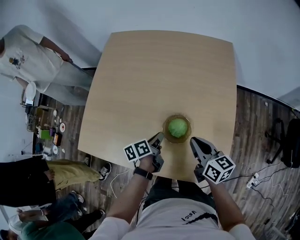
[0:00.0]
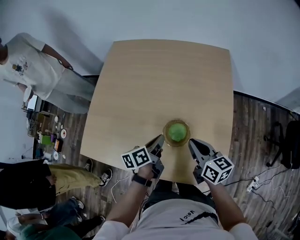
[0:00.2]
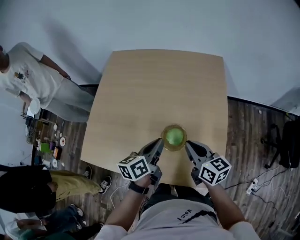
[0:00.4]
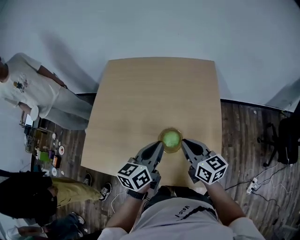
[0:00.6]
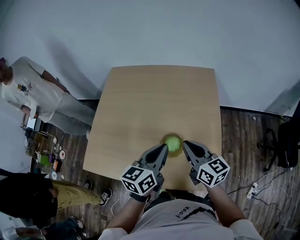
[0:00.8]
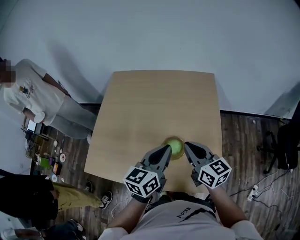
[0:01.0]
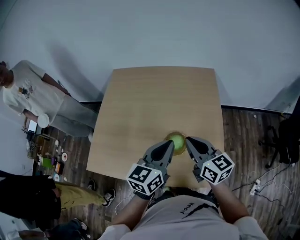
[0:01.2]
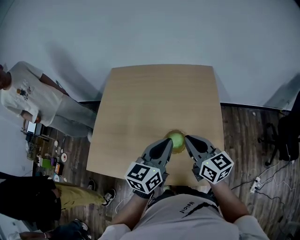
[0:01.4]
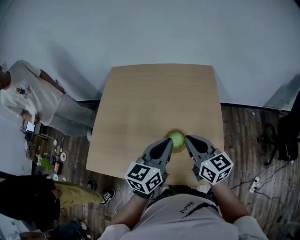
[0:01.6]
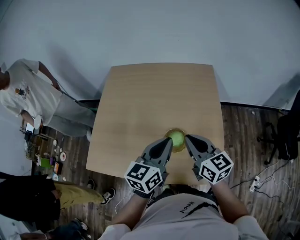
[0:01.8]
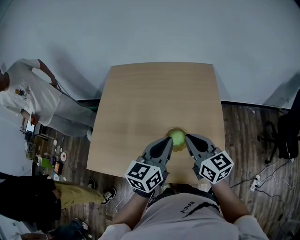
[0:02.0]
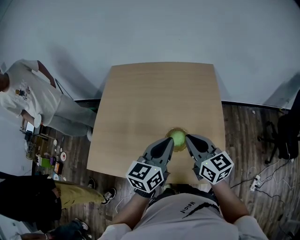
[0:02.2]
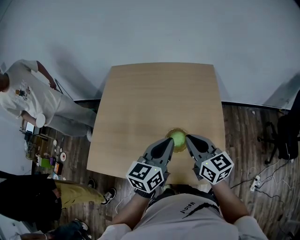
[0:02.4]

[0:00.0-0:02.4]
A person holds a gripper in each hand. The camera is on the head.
0:00.0 to 0:01.2: The right gripper travels upward by about 15 cm.

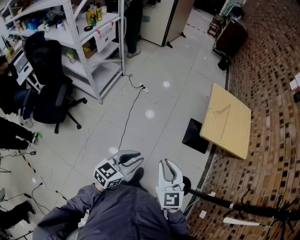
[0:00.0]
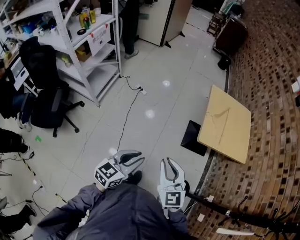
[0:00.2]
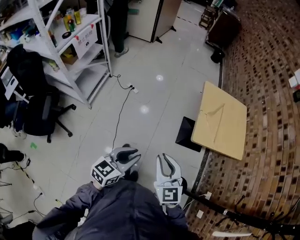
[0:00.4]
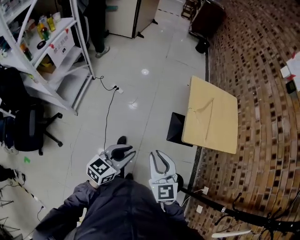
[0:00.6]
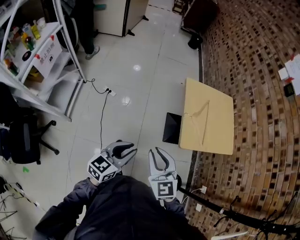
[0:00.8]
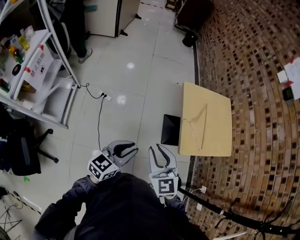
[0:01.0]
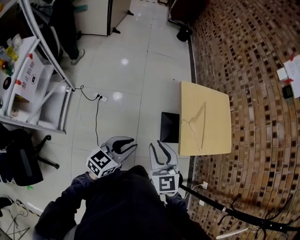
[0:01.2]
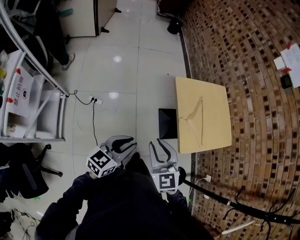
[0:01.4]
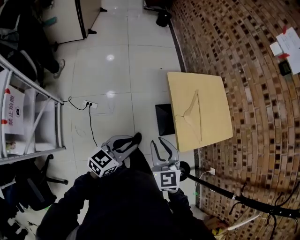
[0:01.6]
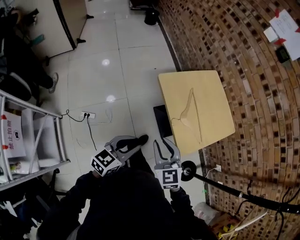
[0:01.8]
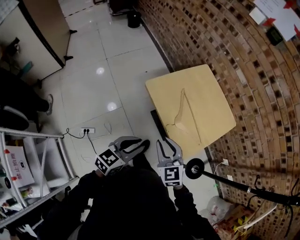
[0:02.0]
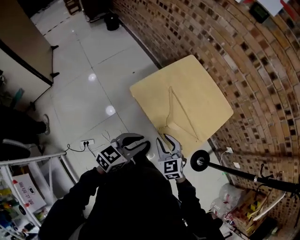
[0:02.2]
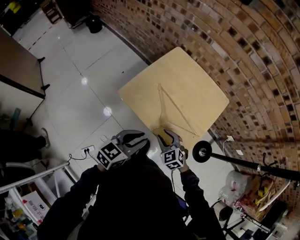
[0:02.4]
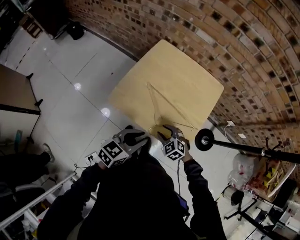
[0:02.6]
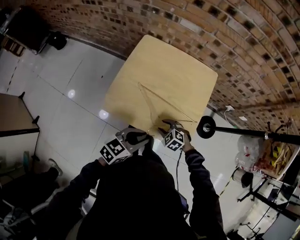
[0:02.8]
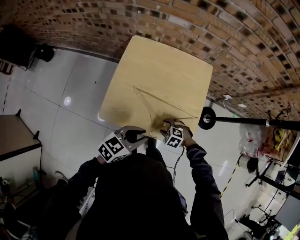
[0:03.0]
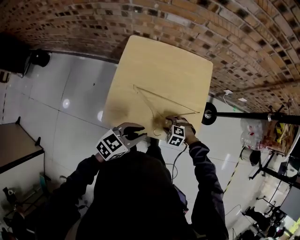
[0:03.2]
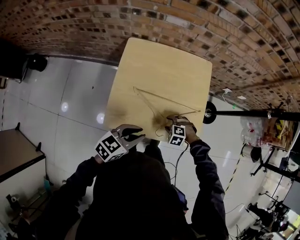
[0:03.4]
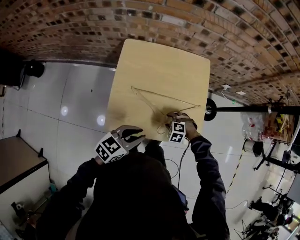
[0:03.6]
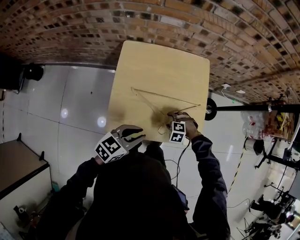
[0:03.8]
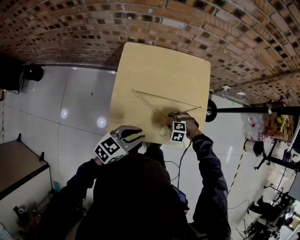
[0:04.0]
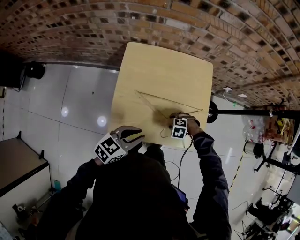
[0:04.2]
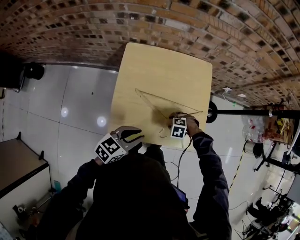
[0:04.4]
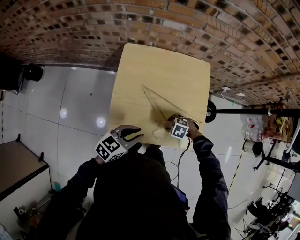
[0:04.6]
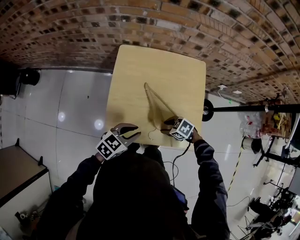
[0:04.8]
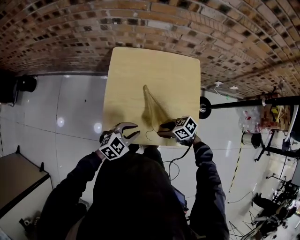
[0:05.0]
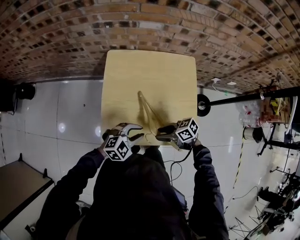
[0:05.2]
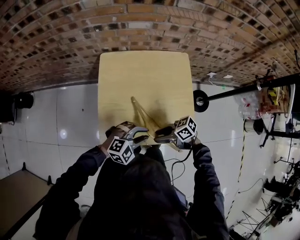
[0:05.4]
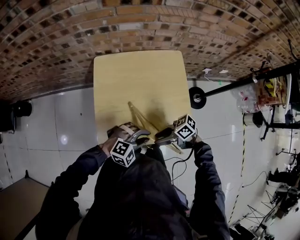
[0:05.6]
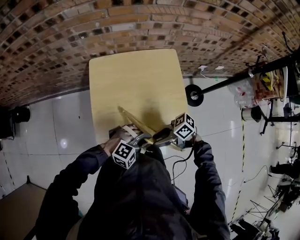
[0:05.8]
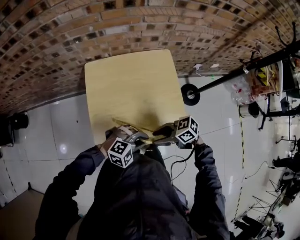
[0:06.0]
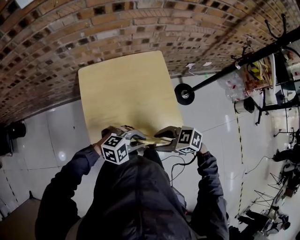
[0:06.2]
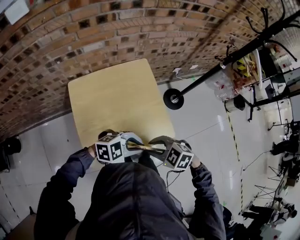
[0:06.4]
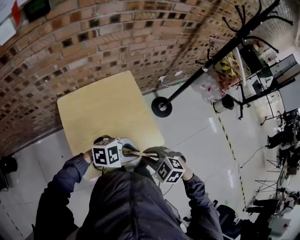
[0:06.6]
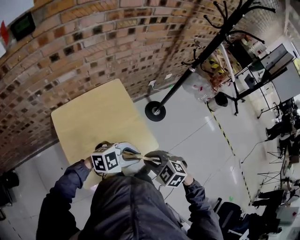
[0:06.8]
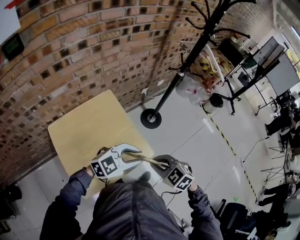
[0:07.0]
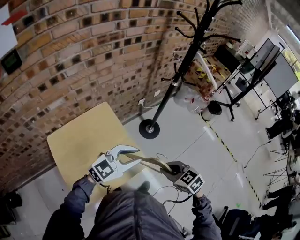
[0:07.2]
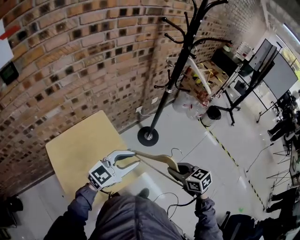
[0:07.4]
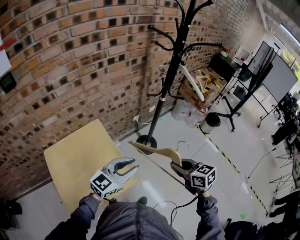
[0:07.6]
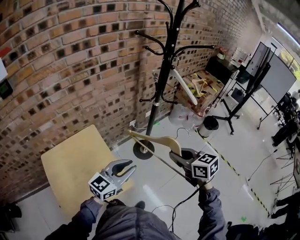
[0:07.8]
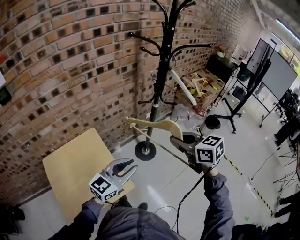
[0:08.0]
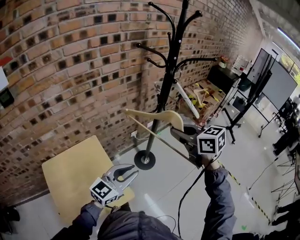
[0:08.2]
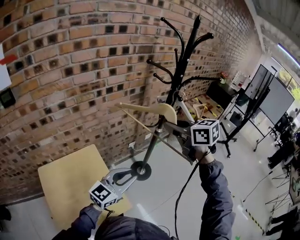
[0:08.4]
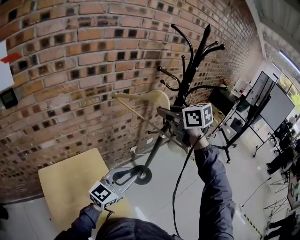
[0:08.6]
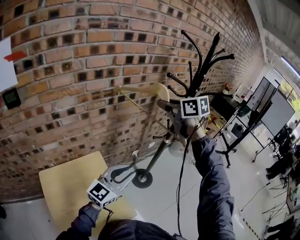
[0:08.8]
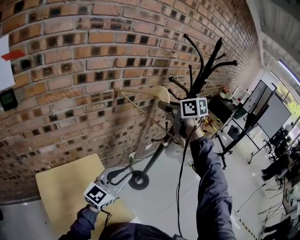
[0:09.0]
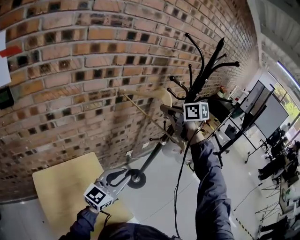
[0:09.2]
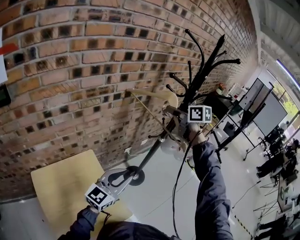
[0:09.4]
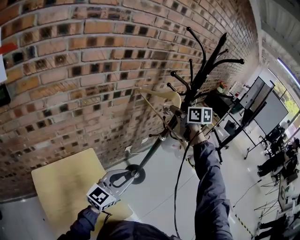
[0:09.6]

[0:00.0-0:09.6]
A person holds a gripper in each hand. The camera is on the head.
0:00.0 to 0:01.6: The pair of grippers is taken some 50 cm. The left gripper swivels roughly 30 degrees. The right gripper swivels approximately 30 degrees.
0:01.6 to 0:03.2: The right gripper shifts by about 50 cm, tips its fingers downward by some 50 degrees, and opens, while the left gripper moves about 40 cm, and rotates some 80 degrees.
0:03.2 to 0:04.8: The right gripper changes place by roughly 5 cm, and changes its angle by some 40 degrees, while the left gripper moves roughly 10 cm.
0:04.8 to 0:06.4: The left gripper changes place by about 15 cm, and turns by approximately 70 degrees; the right gripper travels upward by about 20 cm, and changes its angle by roughly 30 degrees.
0:06.4 to 0:08.0: The left gripper moves approximately 35 cm, and angles its fingers upward, by some 30 degrees. Meanwhile the right gripper changes place by about 50 cm, and turns by about 60 degrees.
0:08.0 to 0:09.6: The right gripper is displaced forward by some 30 cm. Meanwhile the left gripper travels forward and to the left by roughly 15 cm.

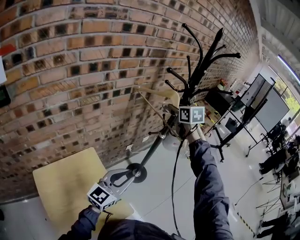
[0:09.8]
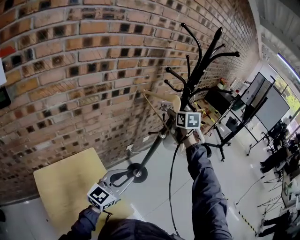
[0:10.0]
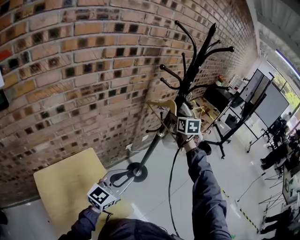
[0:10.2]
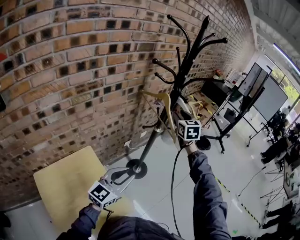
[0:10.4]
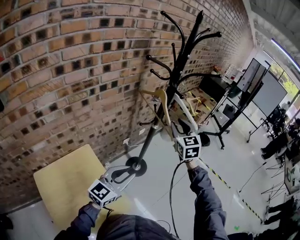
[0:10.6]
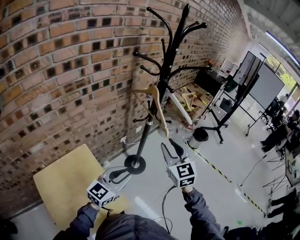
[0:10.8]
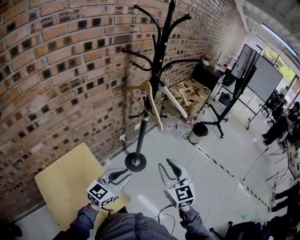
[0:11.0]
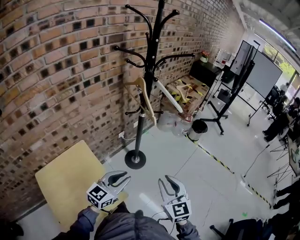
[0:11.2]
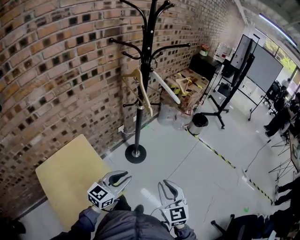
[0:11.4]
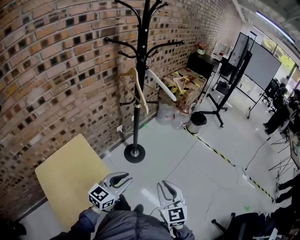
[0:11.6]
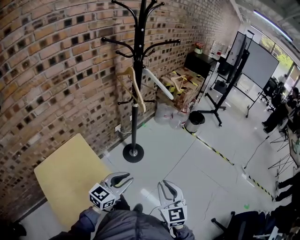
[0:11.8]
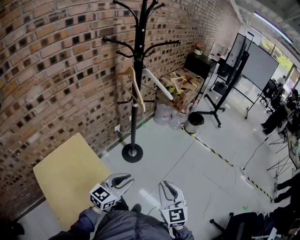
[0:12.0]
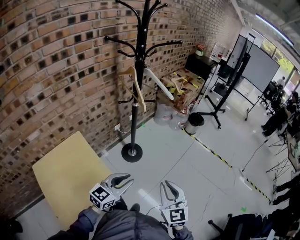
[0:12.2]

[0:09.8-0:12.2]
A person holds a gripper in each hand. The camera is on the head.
0:09.8 to 0:11.0: The left gripper travels to the right by approximately 10 cm, while the right gripper moves backward and to the right, some 35 cm, and turns by approximately 20 degrees.
0:11.0 to 0:12.2: The left gripper goes approximately 15 cm to the right and backward. The right gripper moves backward, to the right and downward, about 20 cm.

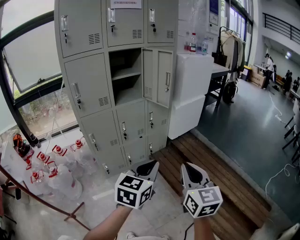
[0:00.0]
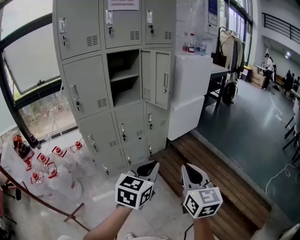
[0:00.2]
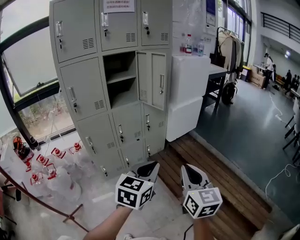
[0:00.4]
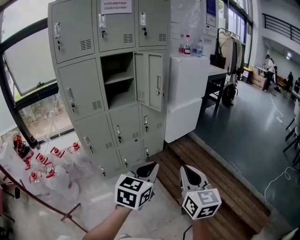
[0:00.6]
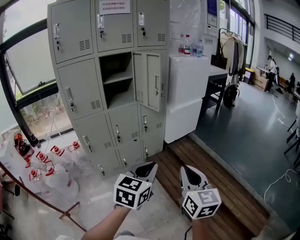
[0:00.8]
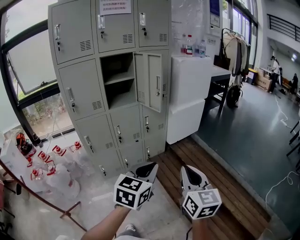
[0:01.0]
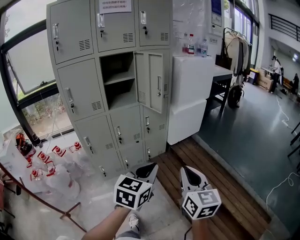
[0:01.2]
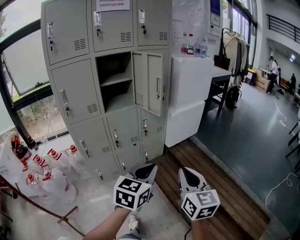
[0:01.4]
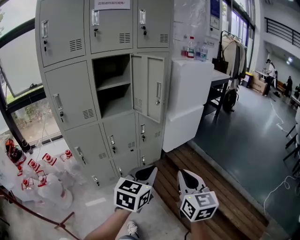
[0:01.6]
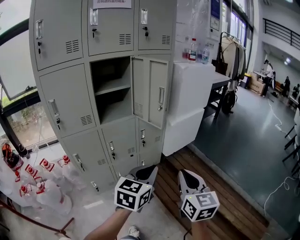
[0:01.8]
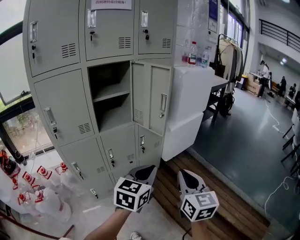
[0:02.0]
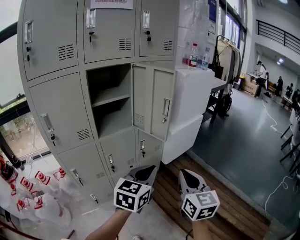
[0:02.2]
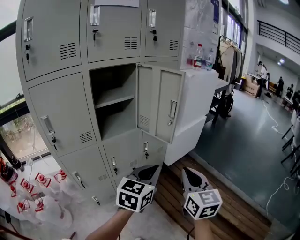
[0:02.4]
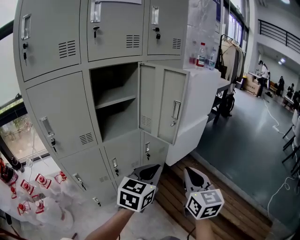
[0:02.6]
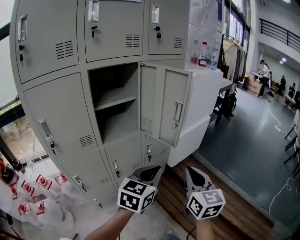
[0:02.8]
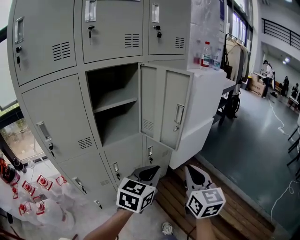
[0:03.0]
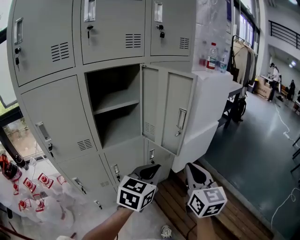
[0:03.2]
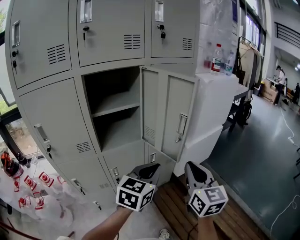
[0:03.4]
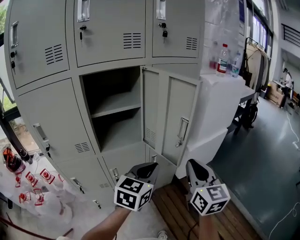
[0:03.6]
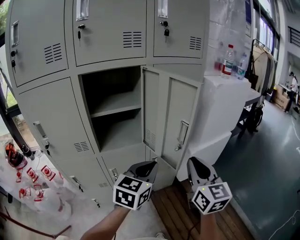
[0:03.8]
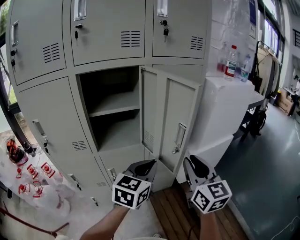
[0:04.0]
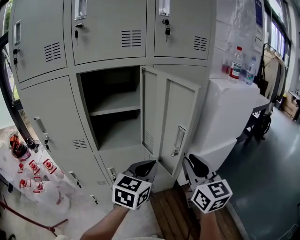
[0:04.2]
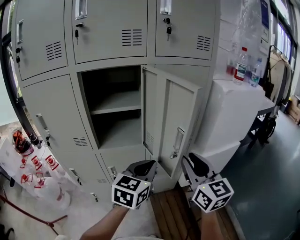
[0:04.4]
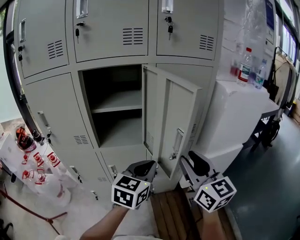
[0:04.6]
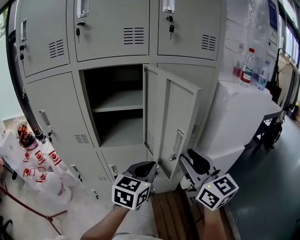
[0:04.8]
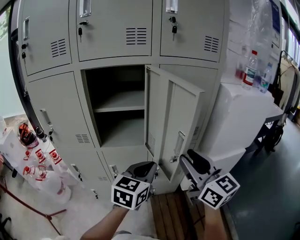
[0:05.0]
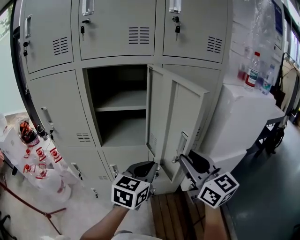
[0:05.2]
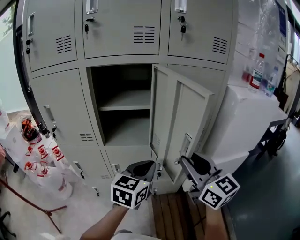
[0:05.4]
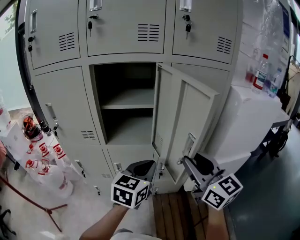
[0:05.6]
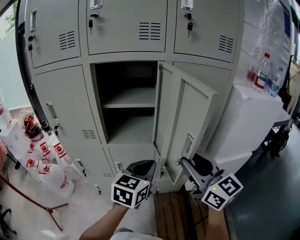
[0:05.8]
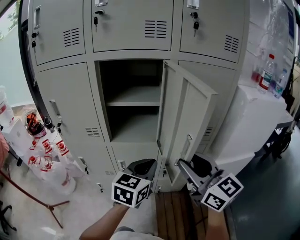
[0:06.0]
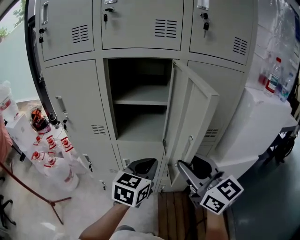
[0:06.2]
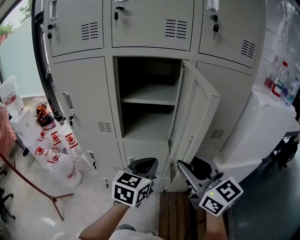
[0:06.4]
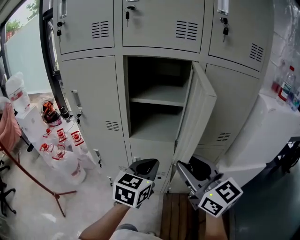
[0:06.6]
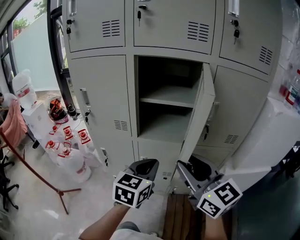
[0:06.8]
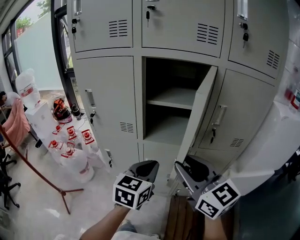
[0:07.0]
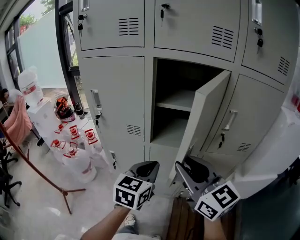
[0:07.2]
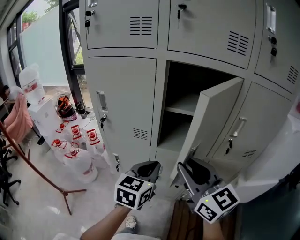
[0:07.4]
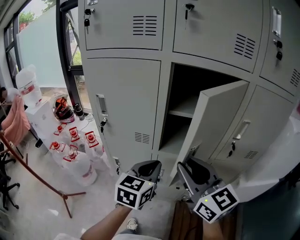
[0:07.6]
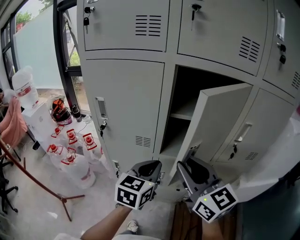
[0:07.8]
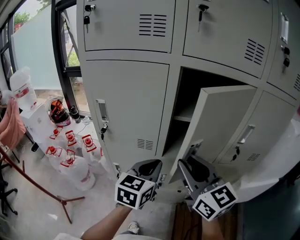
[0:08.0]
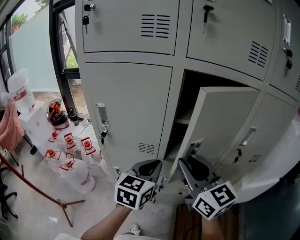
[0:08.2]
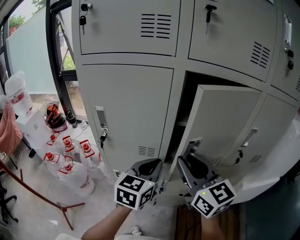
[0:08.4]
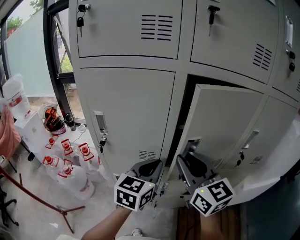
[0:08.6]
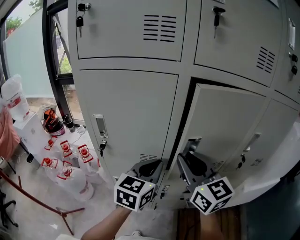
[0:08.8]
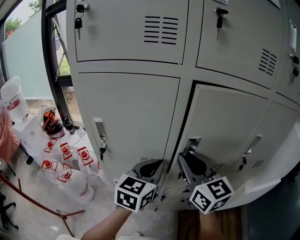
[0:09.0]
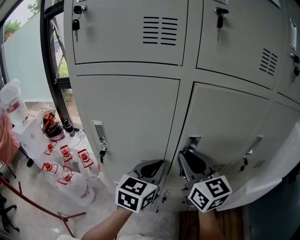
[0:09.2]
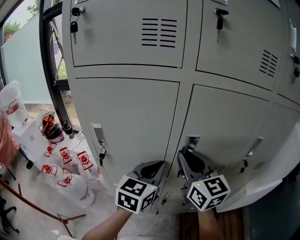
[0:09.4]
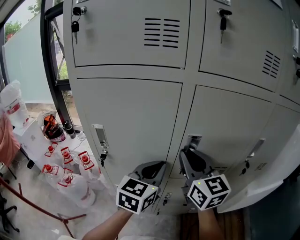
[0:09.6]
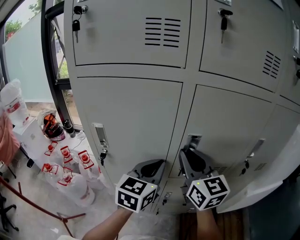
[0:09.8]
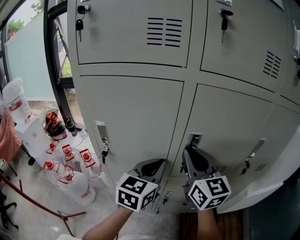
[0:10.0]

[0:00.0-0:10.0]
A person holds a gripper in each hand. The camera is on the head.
0:00.0 to 0:01.4: Both grippers travel together forward and to the right, approximately 10 cm.
0:01.4 to 0:02.8: The two grippers go roughly 25 cm forward and to the left.
0:02.8 to 0:04.2: The two grippers go roughly 20 cm forward. The left gripper changes its angle by approximately 20 degrees. Meanwhile the right gripper turns by some 30 degrees.
0:04.2 to 0:05.8: The right gripper turns by roughly 30 degrees.
0:05.8 to 0:07.2: Both grippers travel together to the left, approximately 15 cm.
0:07.2 to 0:08.6: Both grippers move forward and to the left, roughly 15 cm.
0:08.6 to 0:10.0: The right gripper goes about 5 cm forward.
